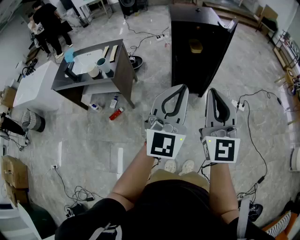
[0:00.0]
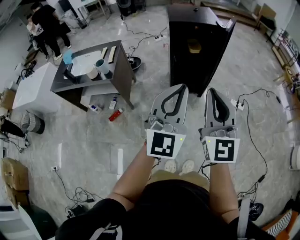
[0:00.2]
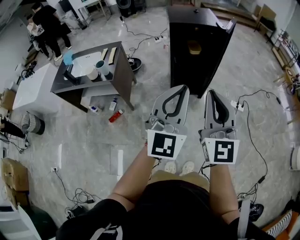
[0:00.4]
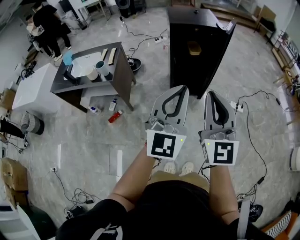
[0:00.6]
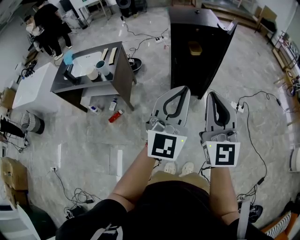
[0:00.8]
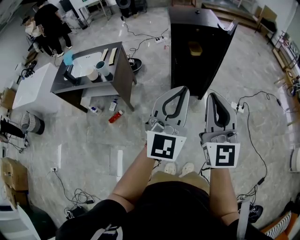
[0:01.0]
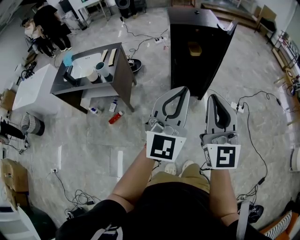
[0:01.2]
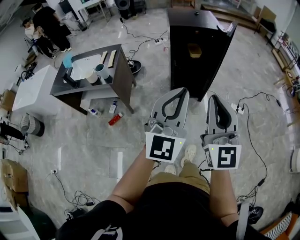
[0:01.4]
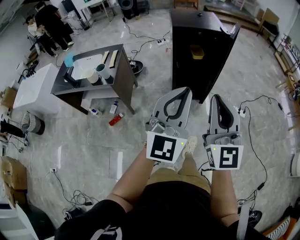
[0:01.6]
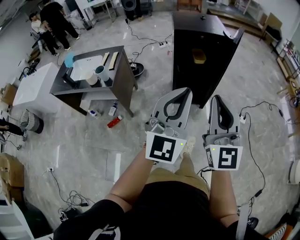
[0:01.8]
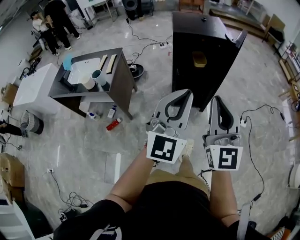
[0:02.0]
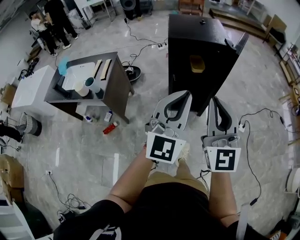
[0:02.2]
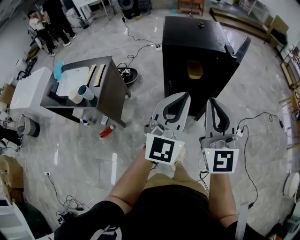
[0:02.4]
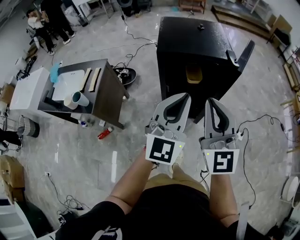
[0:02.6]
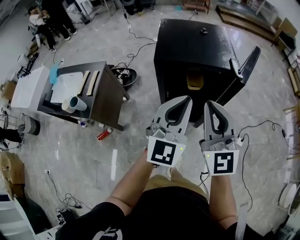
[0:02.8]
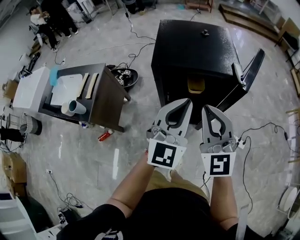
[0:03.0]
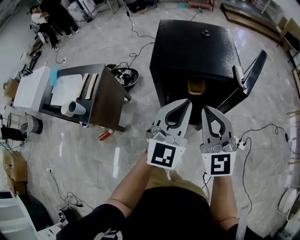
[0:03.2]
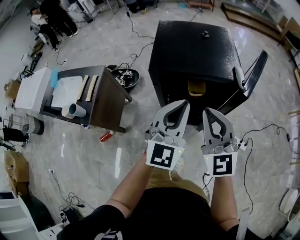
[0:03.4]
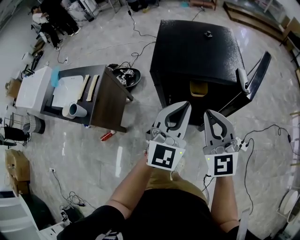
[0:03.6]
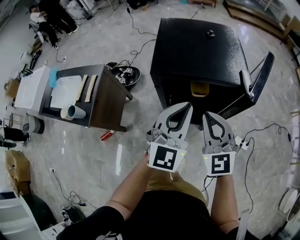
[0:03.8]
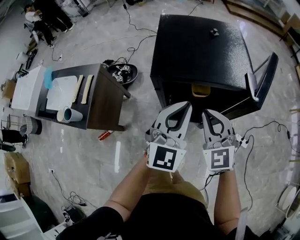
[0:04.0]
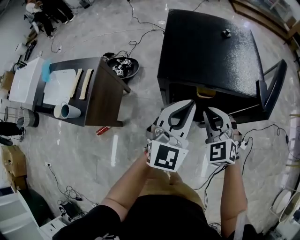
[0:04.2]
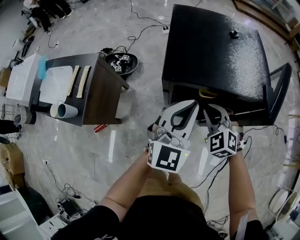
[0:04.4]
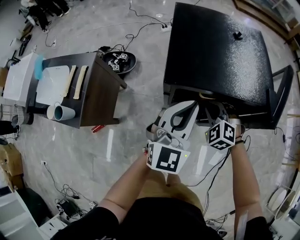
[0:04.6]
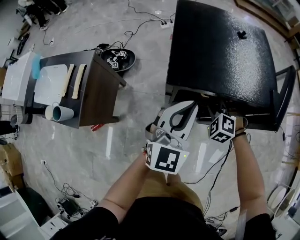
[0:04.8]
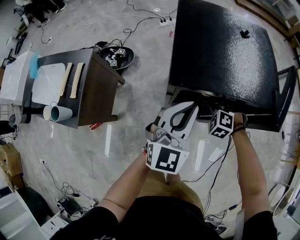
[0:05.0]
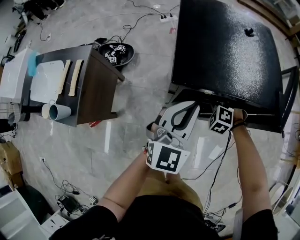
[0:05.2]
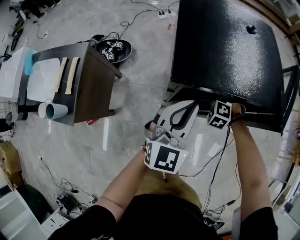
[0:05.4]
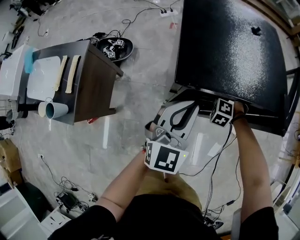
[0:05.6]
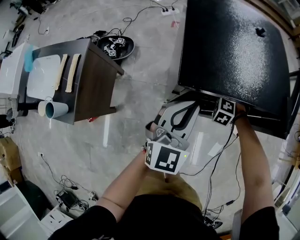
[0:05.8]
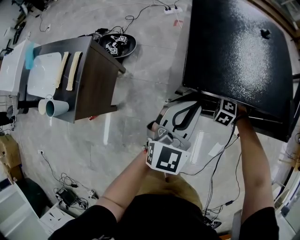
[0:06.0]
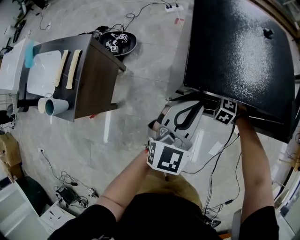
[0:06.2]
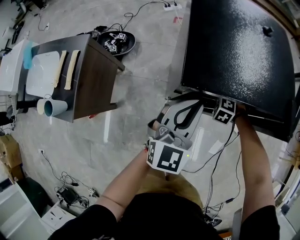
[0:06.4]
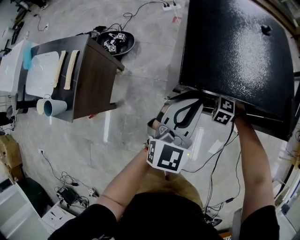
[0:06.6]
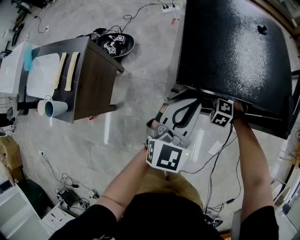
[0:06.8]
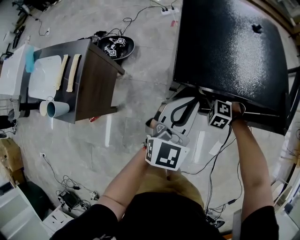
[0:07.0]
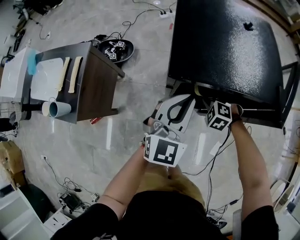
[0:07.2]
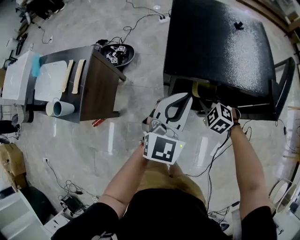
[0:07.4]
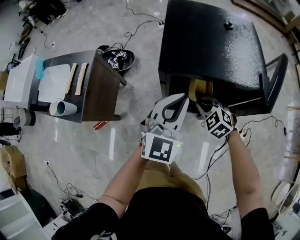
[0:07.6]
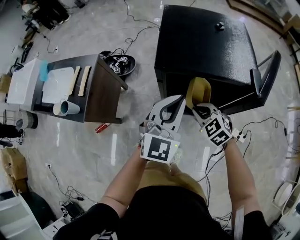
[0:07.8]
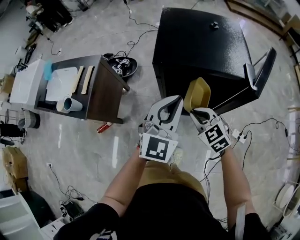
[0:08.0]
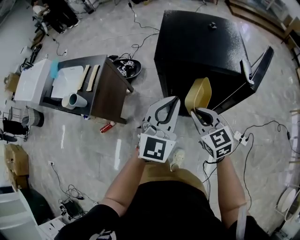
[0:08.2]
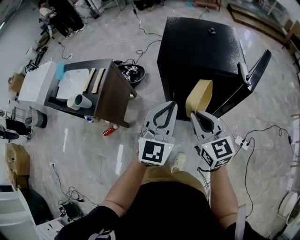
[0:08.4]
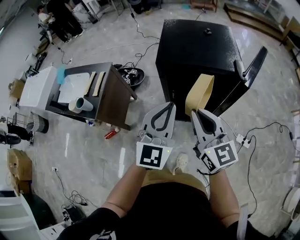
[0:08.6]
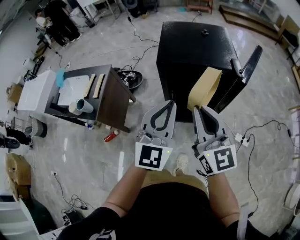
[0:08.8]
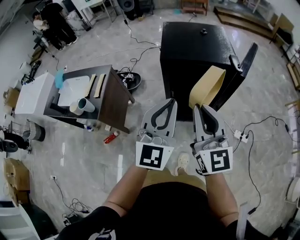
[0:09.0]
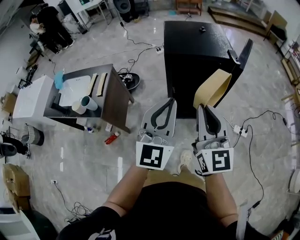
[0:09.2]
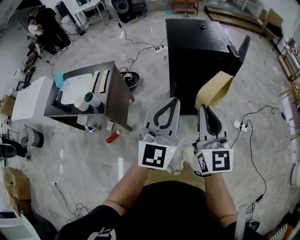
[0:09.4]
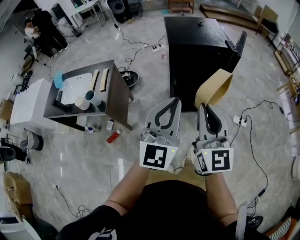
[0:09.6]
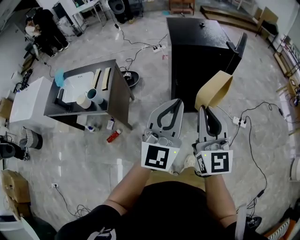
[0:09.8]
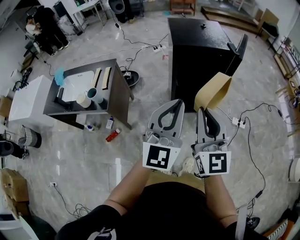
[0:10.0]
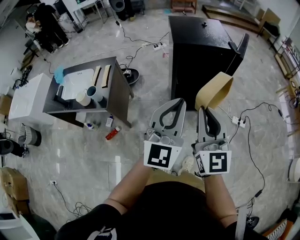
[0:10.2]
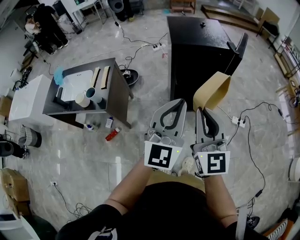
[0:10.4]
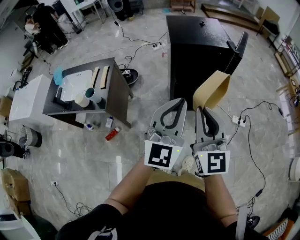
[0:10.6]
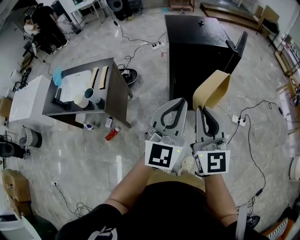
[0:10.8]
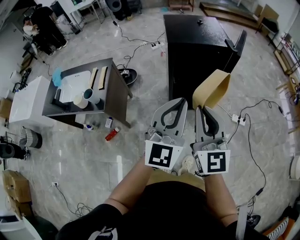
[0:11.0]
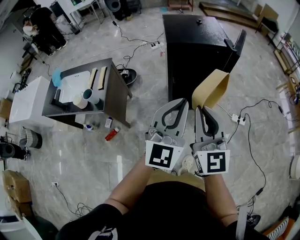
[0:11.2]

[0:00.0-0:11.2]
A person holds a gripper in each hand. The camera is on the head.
0:00.0 to 0:01.6: The grippers stay close to where they were, moving slightly.
0:01.6 to 0:03.2: Both grippers are carried forward, approximately 50 cm.
0:03.2 to 0:04.8: The left gripper goes approximately 20 cm forward, downward and to the left. The right gripper heads downward and forward, covering some 35 cm, and points its fingers approximately 60 degrees further downward.
0:04.8 to 0:06.4: The left gripper moves downward, some 5 cm. The right gripper is displaced downward by approximately 15 cm, and swivels approximately 20 degrees.
0:06.4 to 0:08.0: The right gripper is displaced upward by about 25 cm, and angles its fingers upward, by roughly 40 degrees. Meanwhile the left gripper changes place by approximately 15 cm.
0:08.0 to 0:09.6: The right gripper moves backward and upward, roughly 40 cm, and tips its fingers upward by approximately 50 degrees, while the left gripper shifts approximately 35 cm backward, to the left and upward.
0:09.6 to 0:11.2: There are only small adjustments of the grippers.

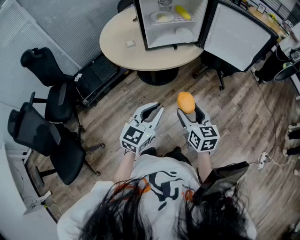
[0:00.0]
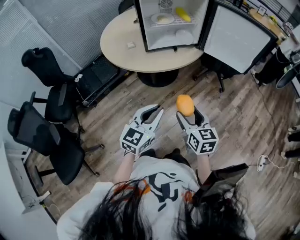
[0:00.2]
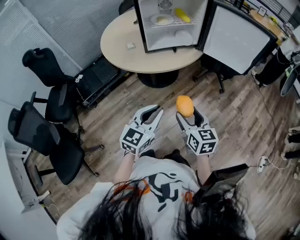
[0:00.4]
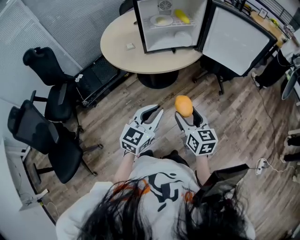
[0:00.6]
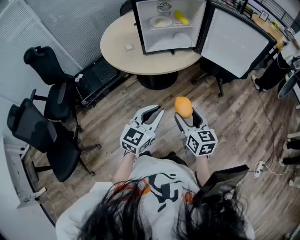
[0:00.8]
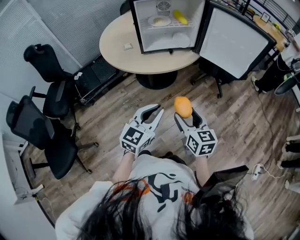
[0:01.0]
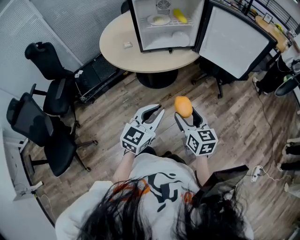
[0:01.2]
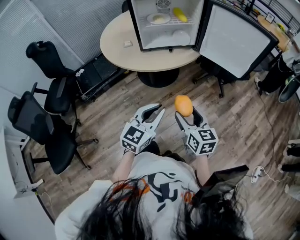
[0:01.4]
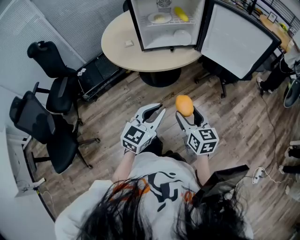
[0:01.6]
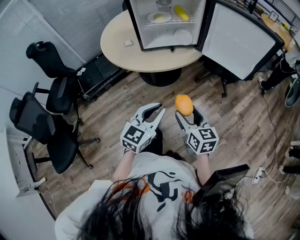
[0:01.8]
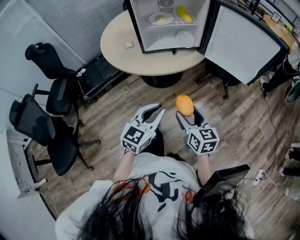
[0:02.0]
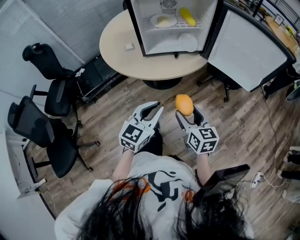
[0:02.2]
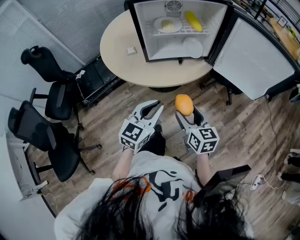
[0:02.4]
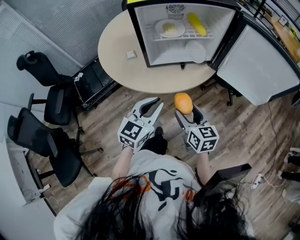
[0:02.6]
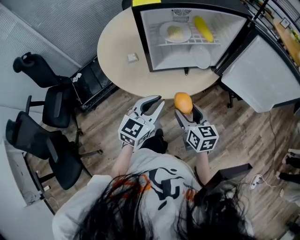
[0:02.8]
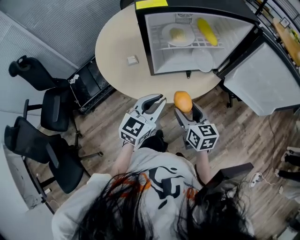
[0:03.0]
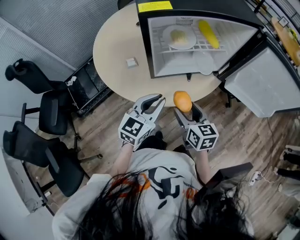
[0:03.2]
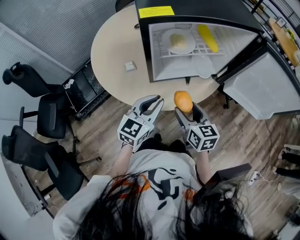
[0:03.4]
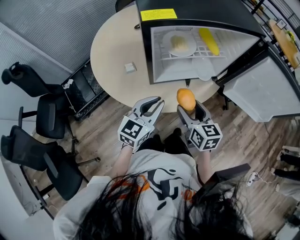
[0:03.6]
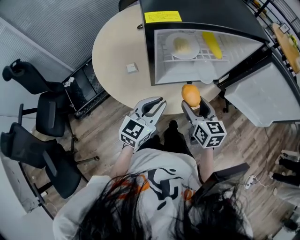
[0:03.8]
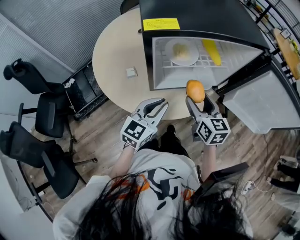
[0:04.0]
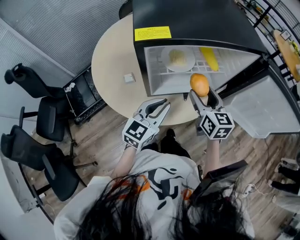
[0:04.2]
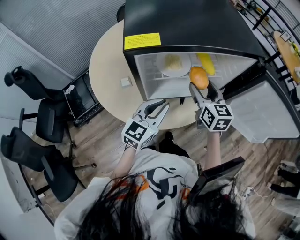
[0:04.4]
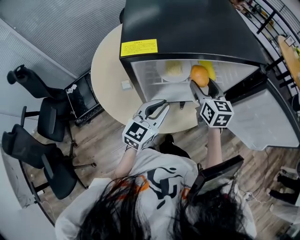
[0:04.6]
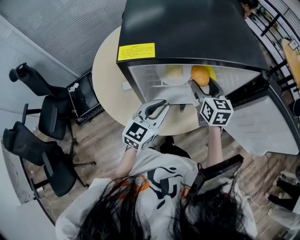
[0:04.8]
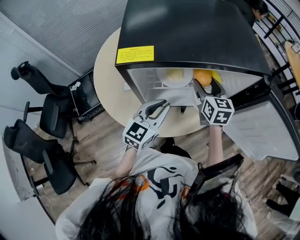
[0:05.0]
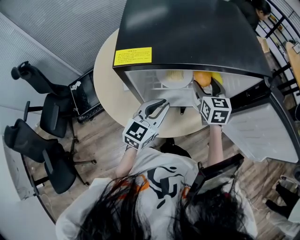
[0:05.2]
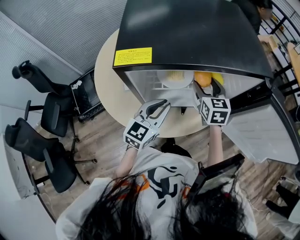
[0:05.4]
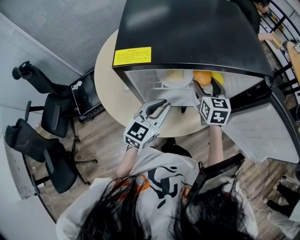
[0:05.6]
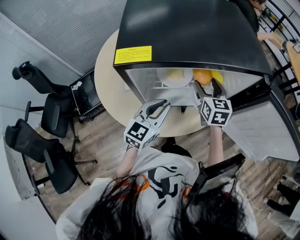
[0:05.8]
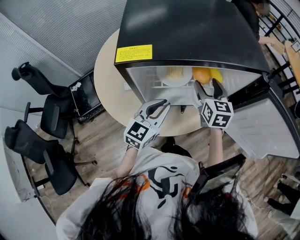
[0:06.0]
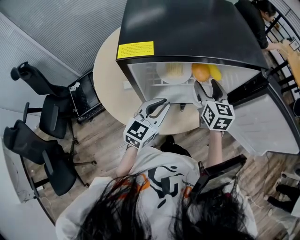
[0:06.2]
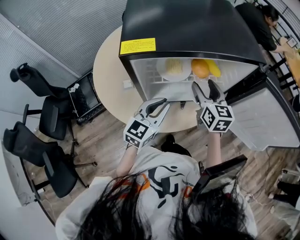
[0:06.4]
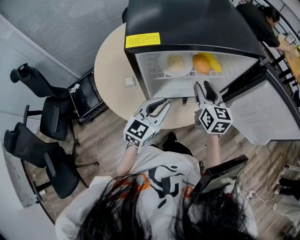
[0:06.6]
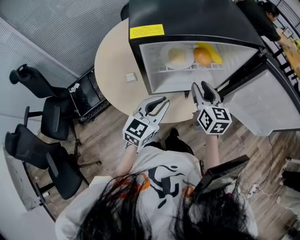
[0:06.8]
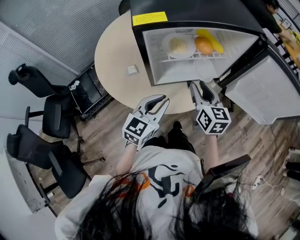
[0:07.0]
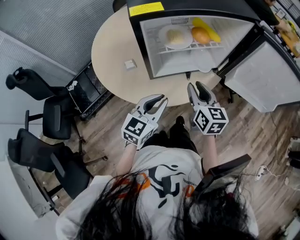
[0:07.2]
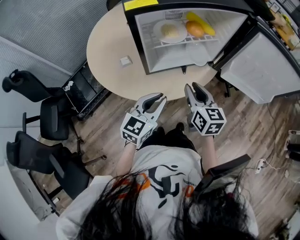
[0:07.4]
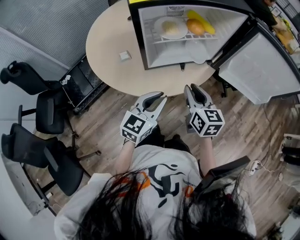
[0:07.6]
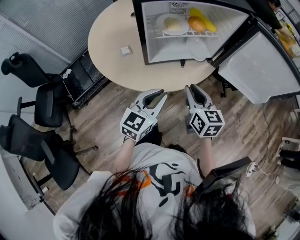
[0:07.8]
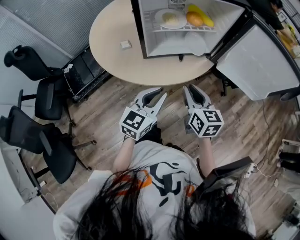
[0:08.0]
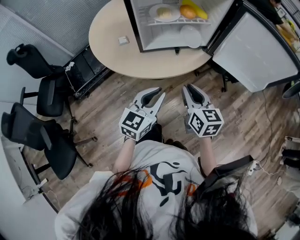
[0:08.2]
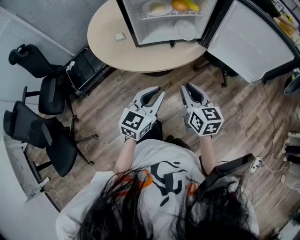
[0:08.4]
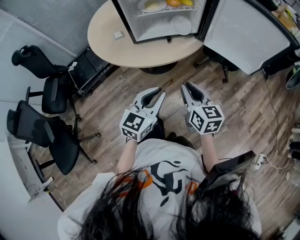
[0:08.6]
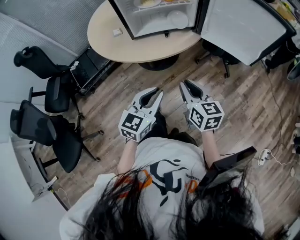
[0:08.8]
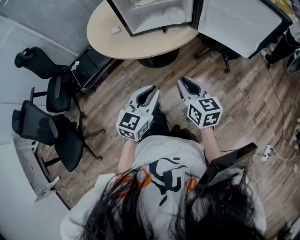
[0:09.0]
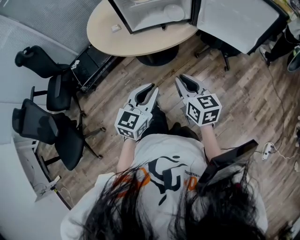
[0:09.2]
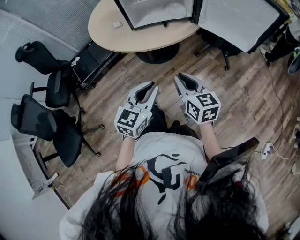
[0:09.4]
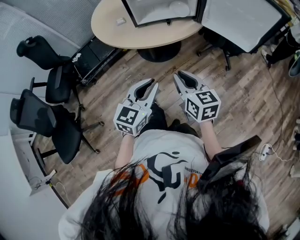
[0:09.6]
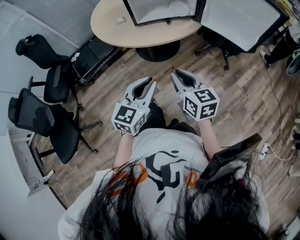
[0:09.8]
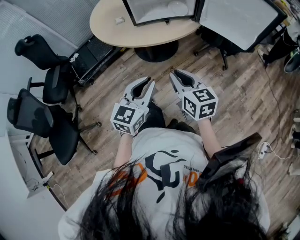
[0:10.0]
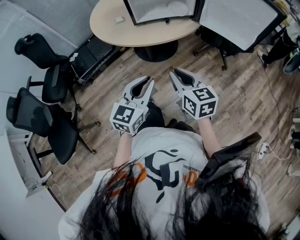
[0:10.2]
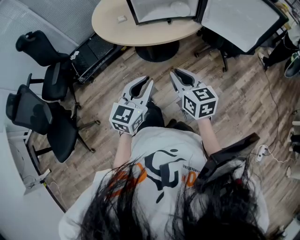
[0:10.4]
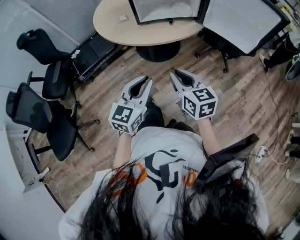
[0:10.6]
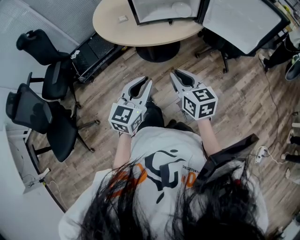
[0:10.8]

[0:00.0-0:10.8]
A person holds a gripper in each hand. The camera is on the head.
0:00.0 to 0:01.6: The two grippers go some 10 cm to the right.
0:01.6 to 0:03.0: Both grippers move forward and to the left, about 30 cm.
0:03.0 to 0:04.6: The left gripper goes some 15 cm forward. The right gripper is displaced forward by some 25 cm.
0:04.6 to 0:06.2: The grippers make only small movements.
0:06.2 to 0:07.8: Both grippers move backward, approximately 20 cm. The right gripper closes its fingers.
0:07.8 to 0:09.2: Both grippers move backward and to the right, approximately 25 cm.
0:09.2 to 0:10.8: The right gripper shifts by approximately 5 cm. Meanwhile the left gripper moves about 5 cm.

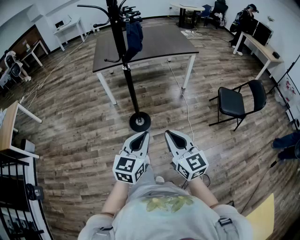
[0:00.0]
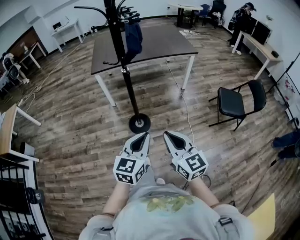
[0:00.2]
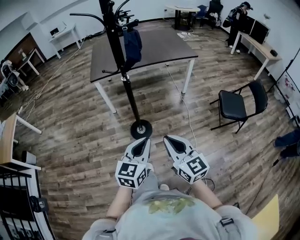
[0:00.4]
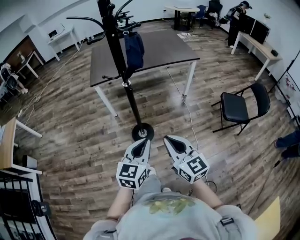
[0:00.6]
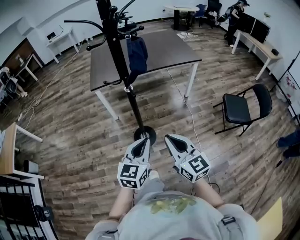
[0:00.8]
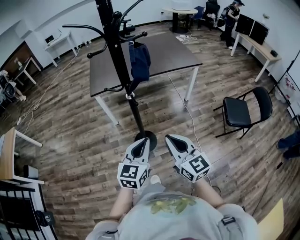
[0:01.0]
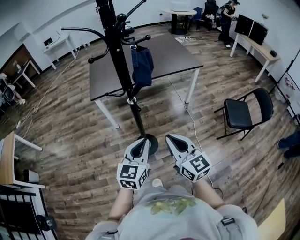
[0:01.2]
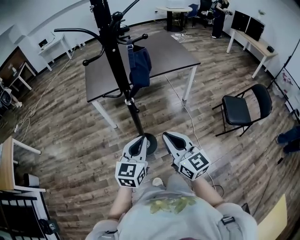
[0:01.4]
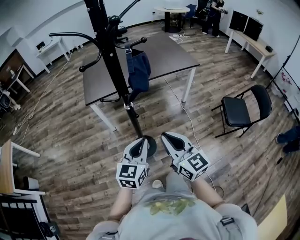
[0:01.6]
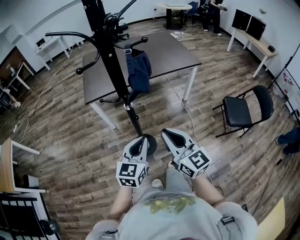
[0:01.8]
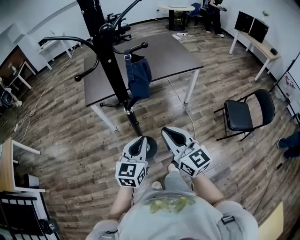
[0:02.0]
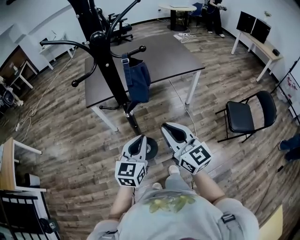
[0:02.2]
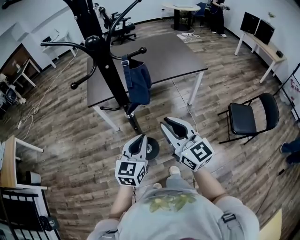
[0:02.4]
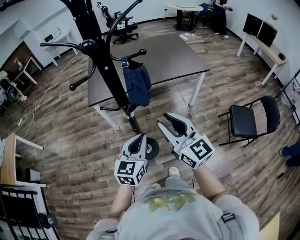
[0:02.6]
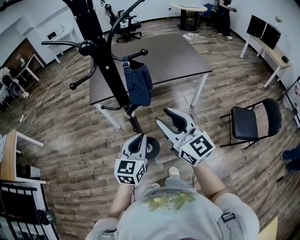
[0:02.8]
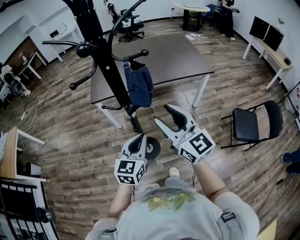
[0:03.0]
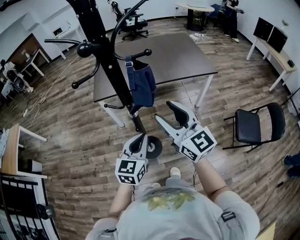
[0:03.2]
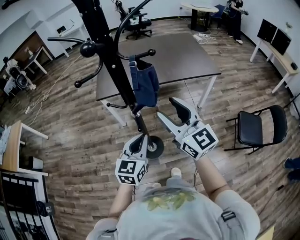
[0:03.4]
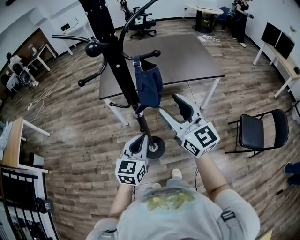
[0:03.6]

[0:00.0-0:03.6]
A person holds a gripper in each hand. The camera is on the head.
0:00.0 to 0:01.8: Both grippers travel together forward, about 30 cm.
0:01.8 to 0:03.6: The left gripper is displaced forward by some 5 cm. The right gripper goes about 15 cm forward and upward, and opens up.
